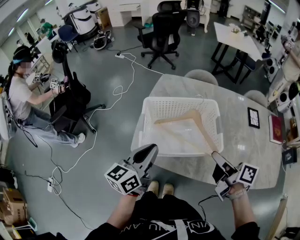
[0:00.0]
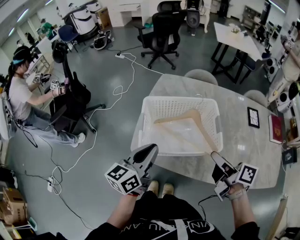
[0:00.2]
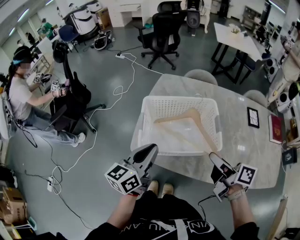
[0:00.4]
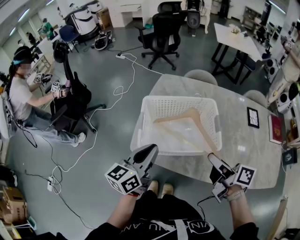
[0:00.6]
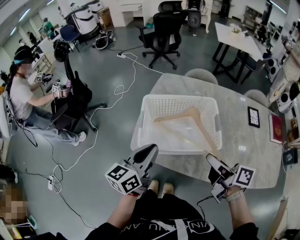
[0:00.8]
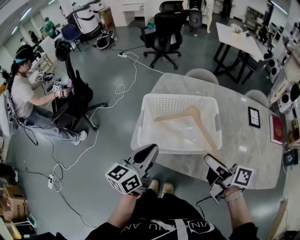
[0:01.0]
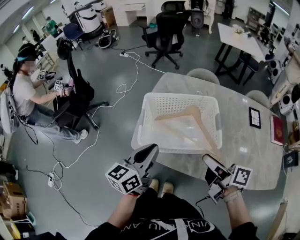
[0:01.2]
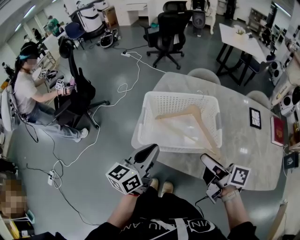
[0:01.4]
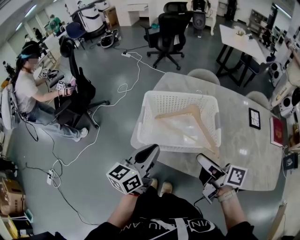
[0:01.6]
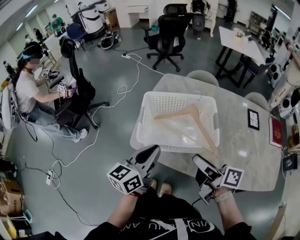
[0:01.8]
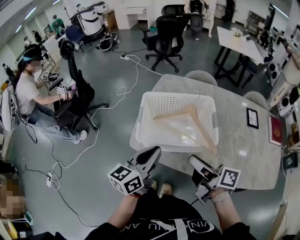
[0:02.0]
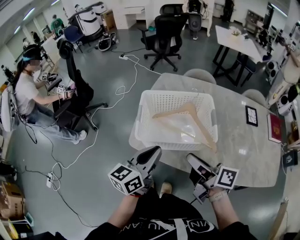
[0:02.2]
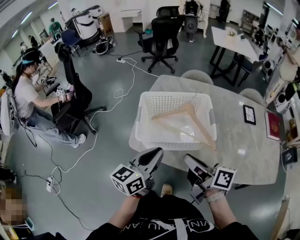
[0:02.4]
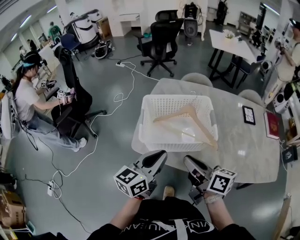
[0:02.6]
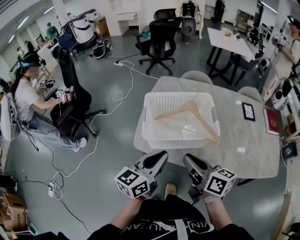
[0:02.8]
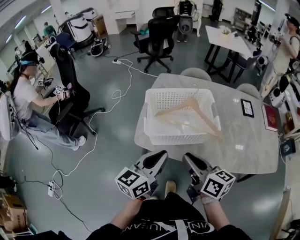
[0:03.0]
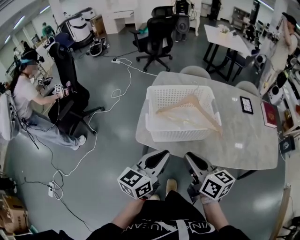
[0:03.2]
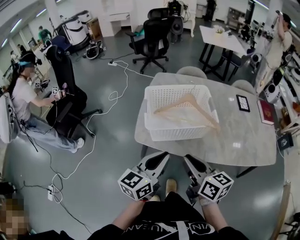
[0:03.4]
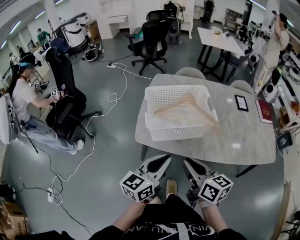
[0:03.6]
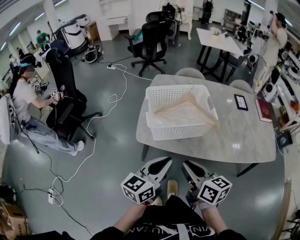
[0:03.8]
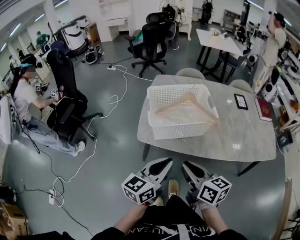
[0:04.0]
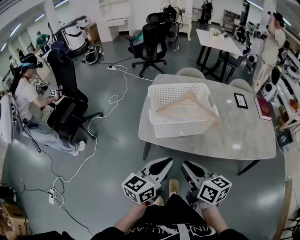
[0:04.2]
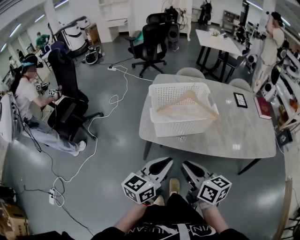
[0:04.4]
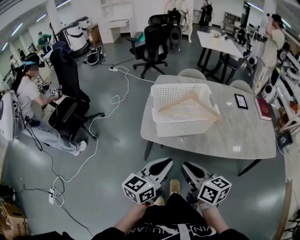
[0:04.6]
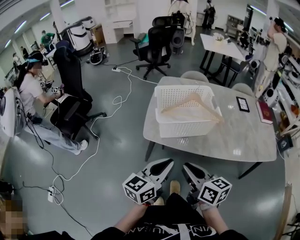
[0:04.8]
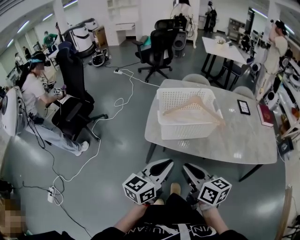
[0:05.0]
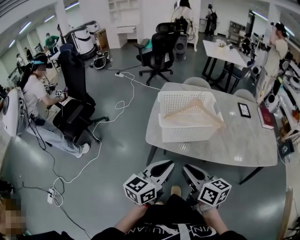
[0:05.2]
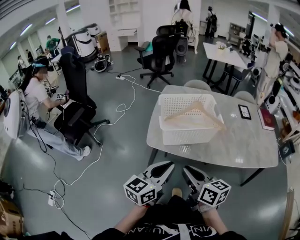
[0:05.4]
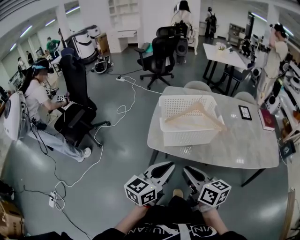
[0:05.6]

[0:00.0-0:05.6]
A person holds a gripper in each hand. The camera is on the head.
0:00.0 to 0:01.4: The grippers move only a little.
0:01.4 to 0:02.8: The left gripper moves backward, approximately 5 cm. Meanwhile the right gripper is displaced to the left by some 10 cm, rotates approximately 20 degrees, and closes.
0:02.8 to 0:04.2: The two grippers go roughly 10 cm backward.
0:04.2 to 0:05.6: The grippers make only small movements.

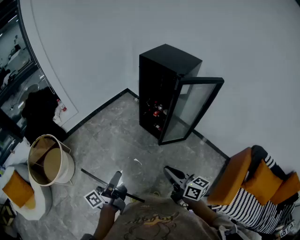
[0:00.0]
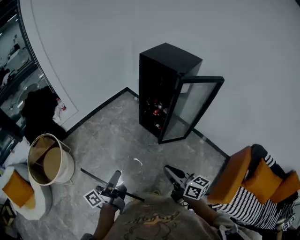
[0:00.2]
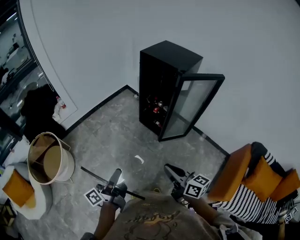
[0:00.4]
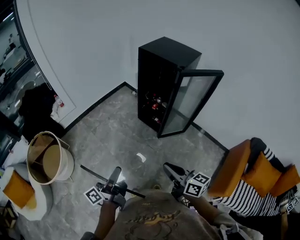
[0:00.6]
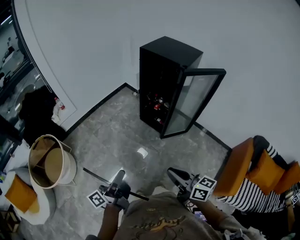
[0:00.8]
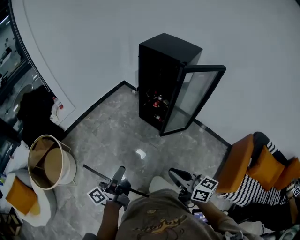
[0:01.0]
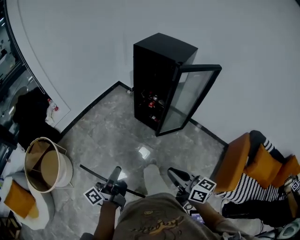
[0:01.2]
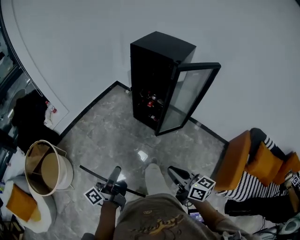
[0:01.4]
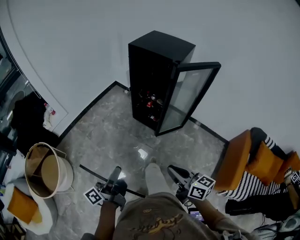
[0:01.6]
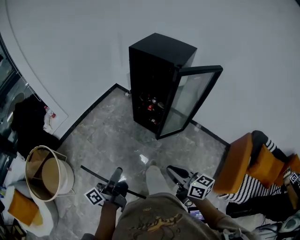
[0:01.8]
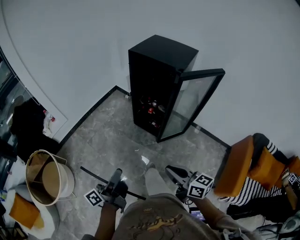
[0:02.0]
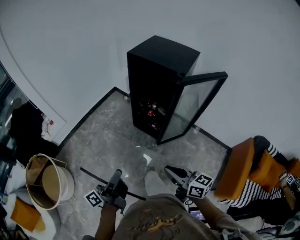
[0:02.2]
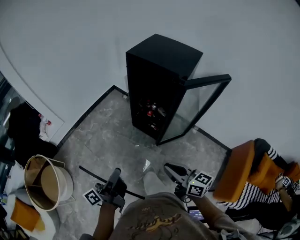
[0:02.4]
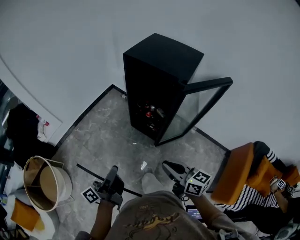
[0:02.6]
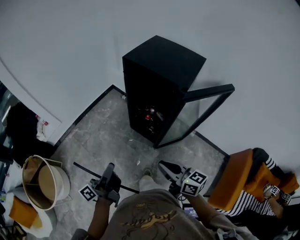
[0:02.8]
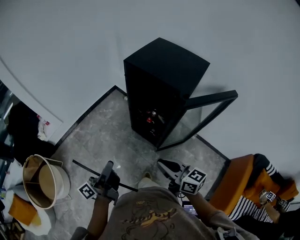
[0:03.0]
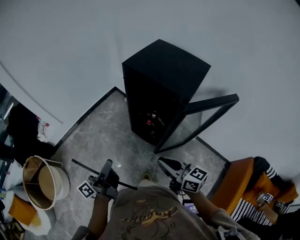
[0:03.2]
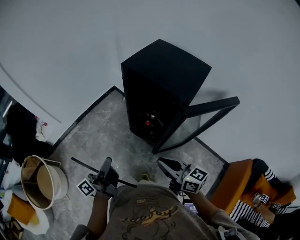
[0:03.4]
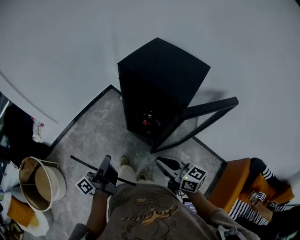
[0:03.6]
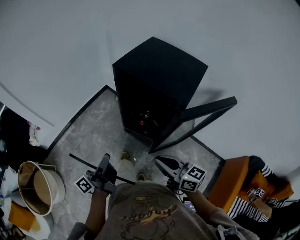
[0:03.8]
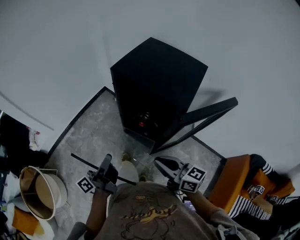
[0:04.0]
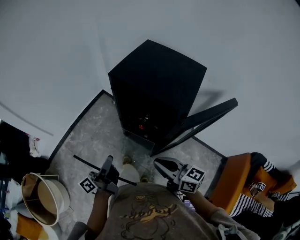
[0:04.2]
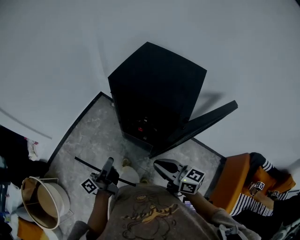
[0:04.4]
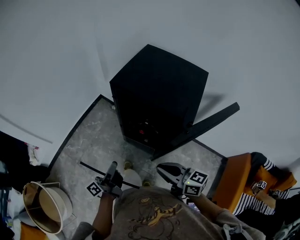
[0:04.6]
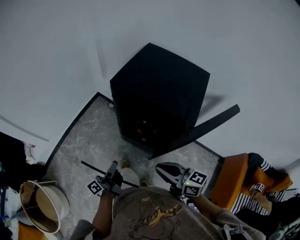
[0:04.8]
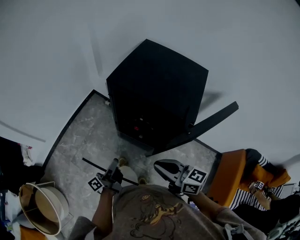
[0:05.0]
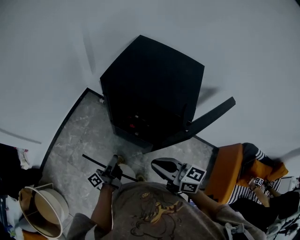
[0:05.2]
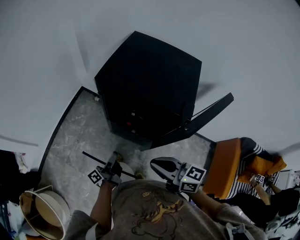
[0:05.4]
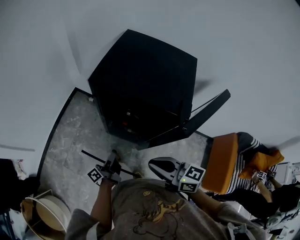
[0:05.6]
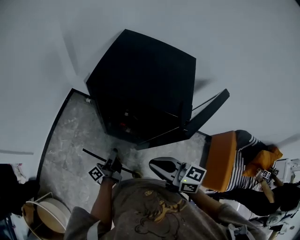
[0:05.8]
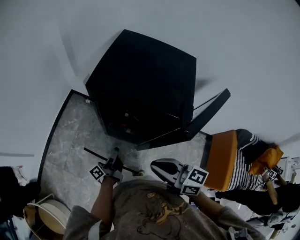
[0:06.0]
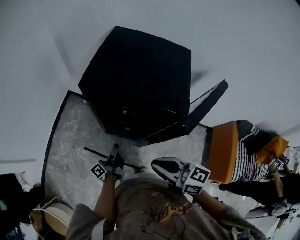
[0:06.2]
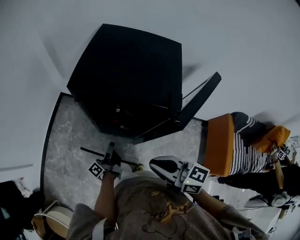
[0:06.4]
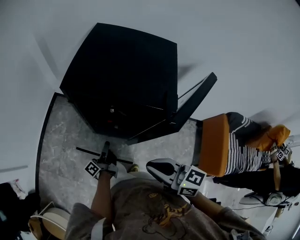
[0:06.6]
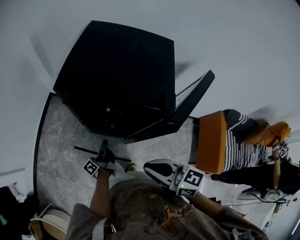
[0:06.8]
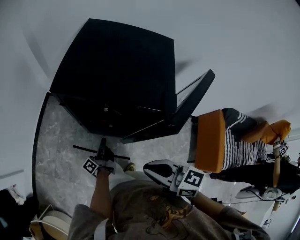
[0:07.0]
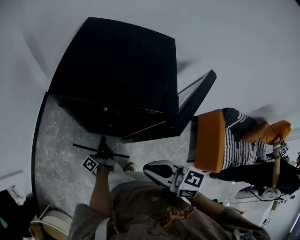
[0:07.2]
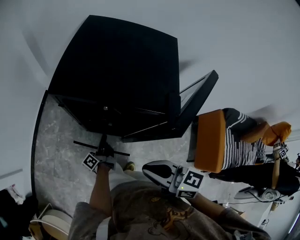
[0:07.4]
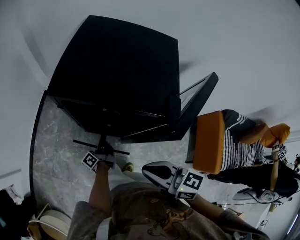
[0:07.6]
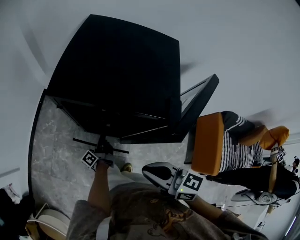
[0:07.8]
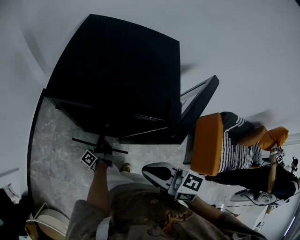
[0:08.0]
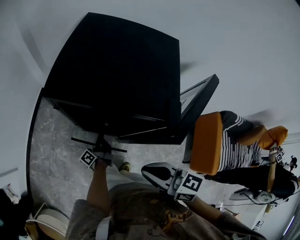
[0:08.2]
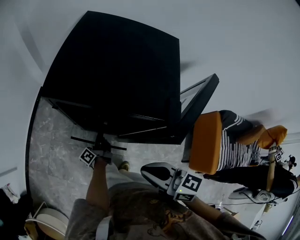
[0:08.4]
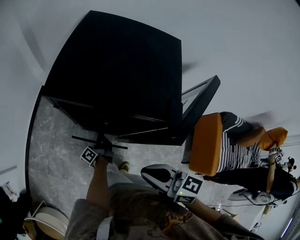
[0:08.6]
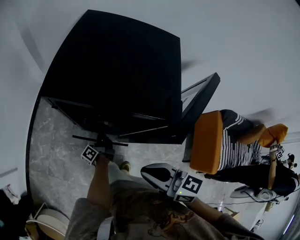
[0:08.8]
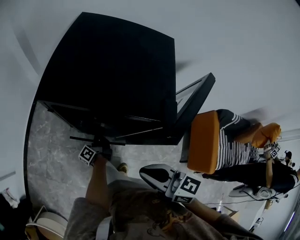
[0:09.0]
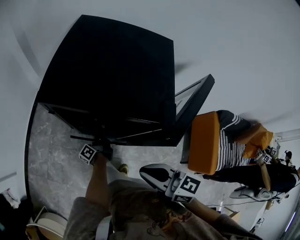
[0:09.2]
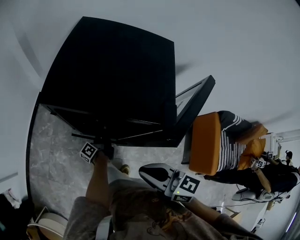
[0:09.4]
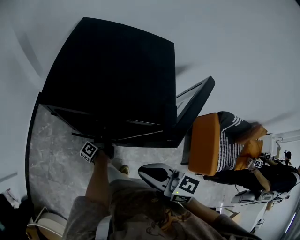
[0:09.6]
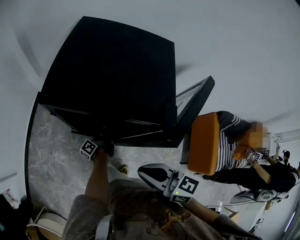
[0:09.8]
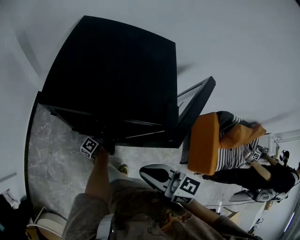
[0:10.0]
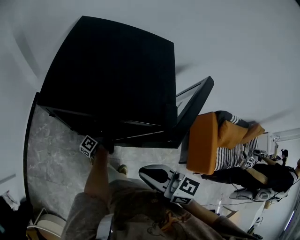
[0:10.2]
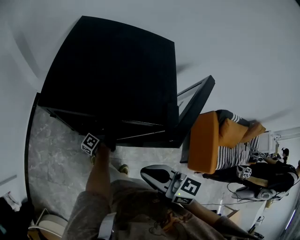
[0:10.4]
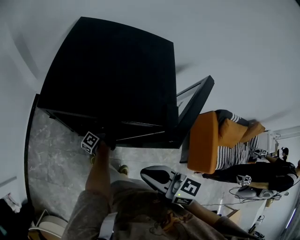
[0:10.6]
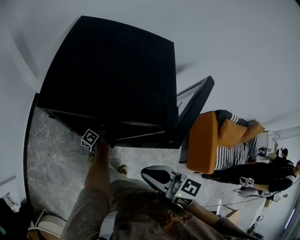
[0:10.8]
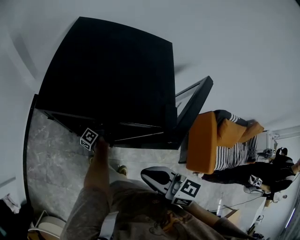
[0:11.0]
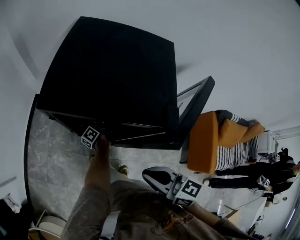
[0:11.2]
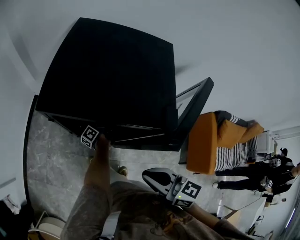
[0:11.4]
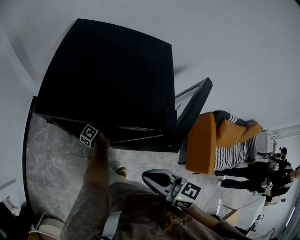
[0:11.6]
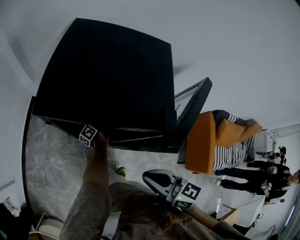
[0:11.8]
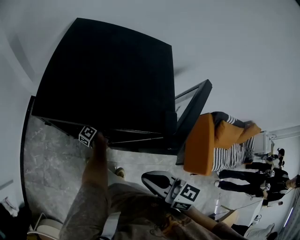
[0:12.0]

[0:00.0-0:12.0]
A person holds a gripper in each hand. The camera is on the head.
0:01.6 to 0:03.0: The right gripper ends up about 25 cm from where it was.
0:03.0 to 0:04.4: The right gripper shifts by approximately 10 cm.
0:04.4 to 0:06.0: The right gripper ends up some 5 cm from where it was.

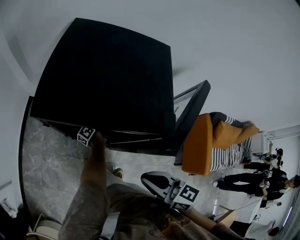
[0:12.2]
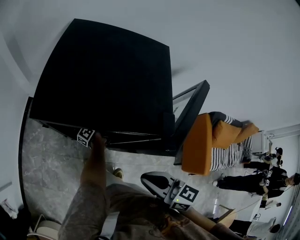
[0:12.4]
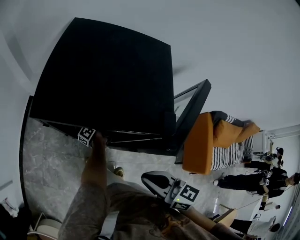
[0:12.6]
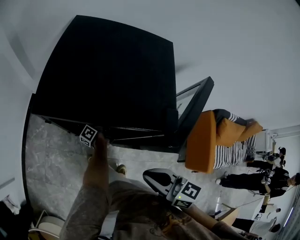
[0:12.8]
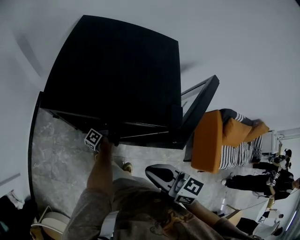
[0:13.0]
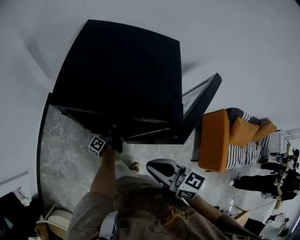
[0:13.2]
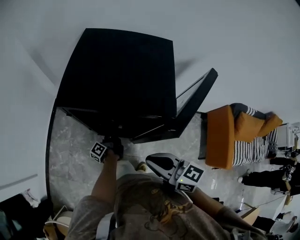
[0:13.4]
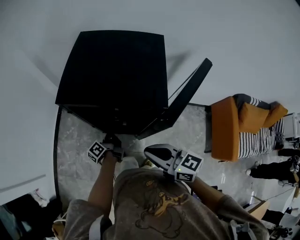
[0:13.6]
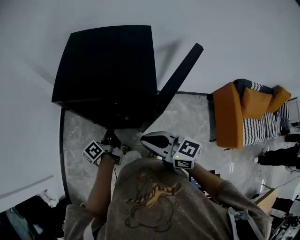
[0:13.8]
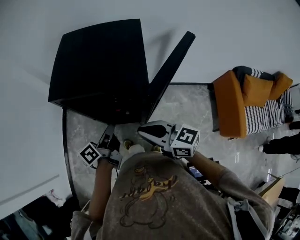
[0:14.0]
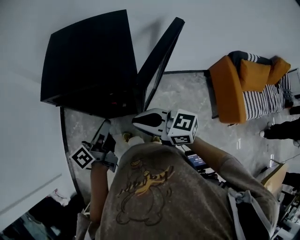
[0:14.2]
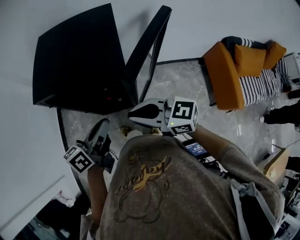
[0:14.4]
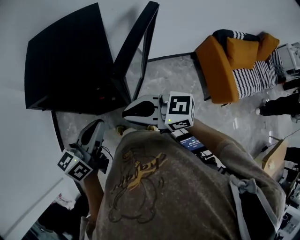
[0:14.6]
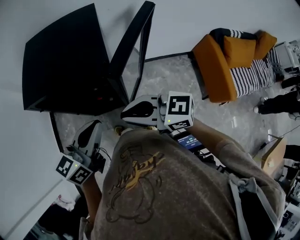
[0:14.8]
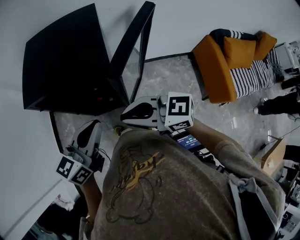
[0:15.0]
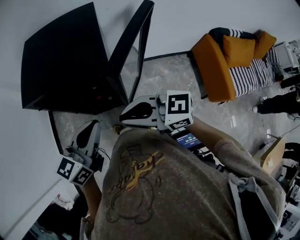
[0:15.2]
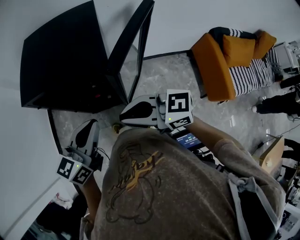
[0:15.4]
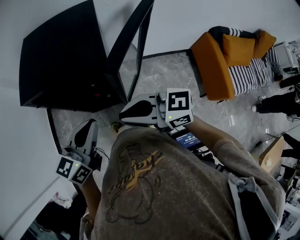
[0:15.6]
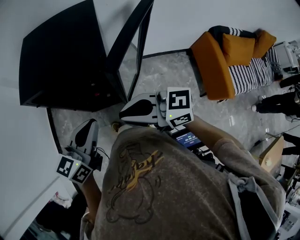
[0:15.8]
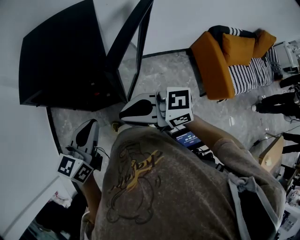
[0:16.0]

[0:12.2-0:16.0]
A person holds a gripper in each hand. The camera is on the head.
0:13.4 to 0:14.8: The right gripper goes roughly 5 cm upward.

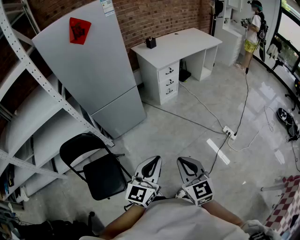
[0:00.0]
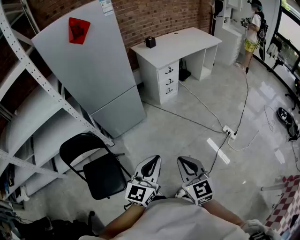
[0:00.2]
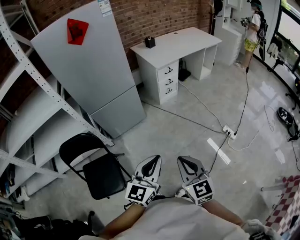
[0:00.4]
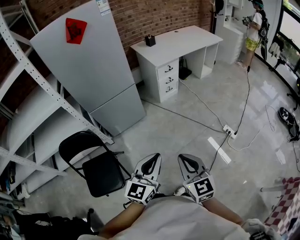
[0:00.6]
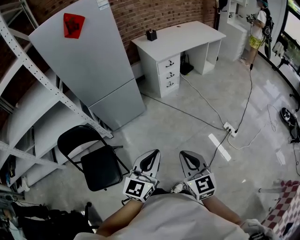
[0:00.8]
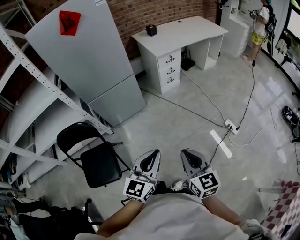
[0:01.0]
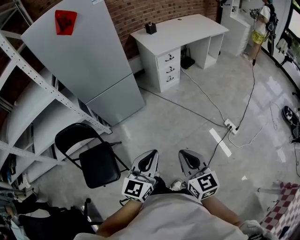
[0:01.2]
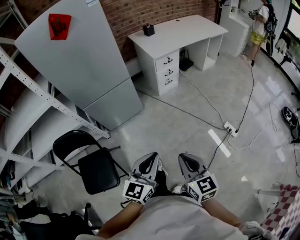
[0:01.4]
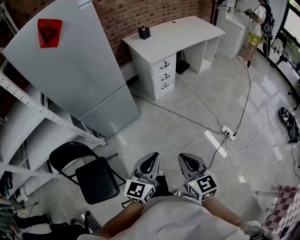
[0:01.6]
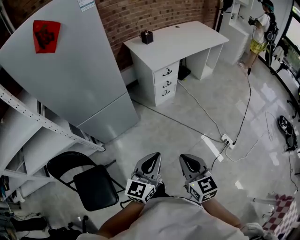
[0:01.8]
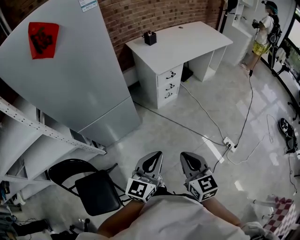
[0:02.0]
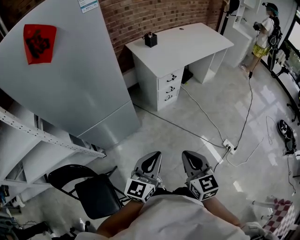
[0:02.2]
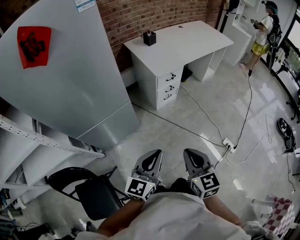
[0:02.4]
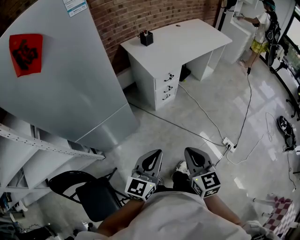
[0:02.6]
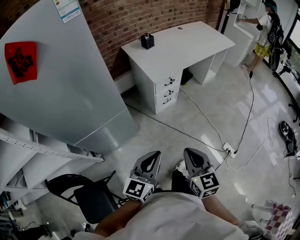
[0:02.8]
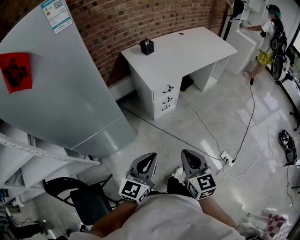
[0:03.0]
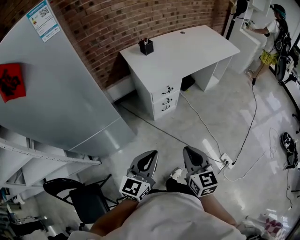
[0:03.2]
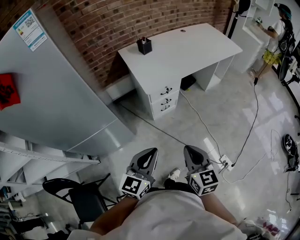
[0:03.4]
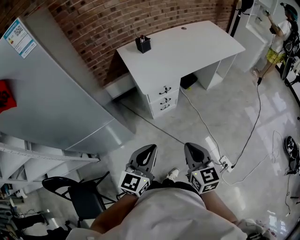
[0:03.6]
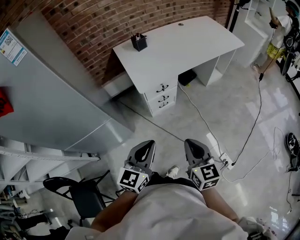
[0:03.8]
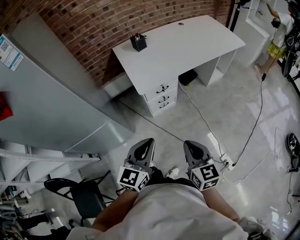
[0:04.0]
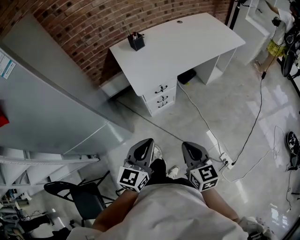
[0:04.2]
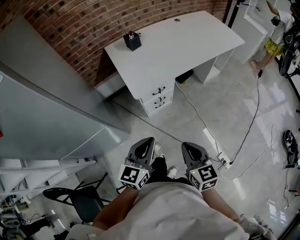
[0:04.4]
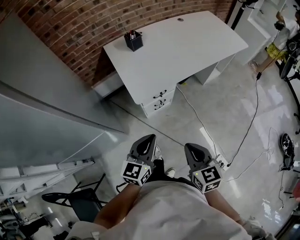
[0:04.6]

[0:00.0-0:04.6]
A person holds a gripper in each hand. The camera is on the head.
0:00.0 to 0:01.6: Both grippers move forward and to the right, some 15 cm.
0:01.6 to 0:03.0: Both grippers move forward, some 30 cm.
0:03.0 to 0:04.6: The left gripper goes approximately 30 cm forward. Meanwhile the right gripper shifts about 25 cm forward and to the right.
